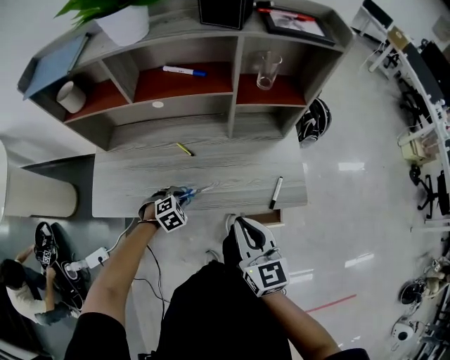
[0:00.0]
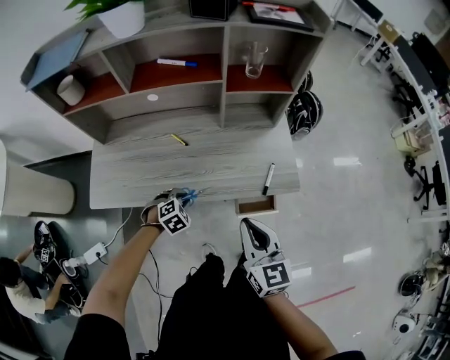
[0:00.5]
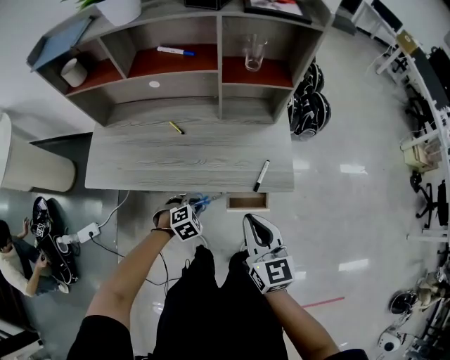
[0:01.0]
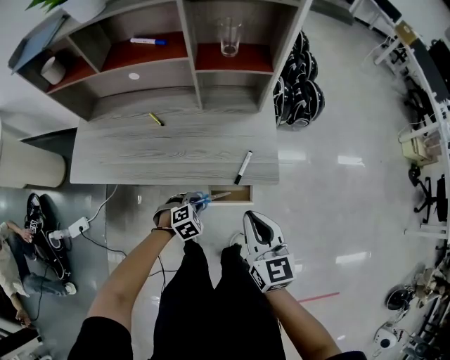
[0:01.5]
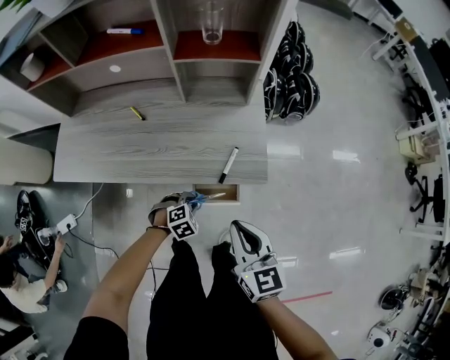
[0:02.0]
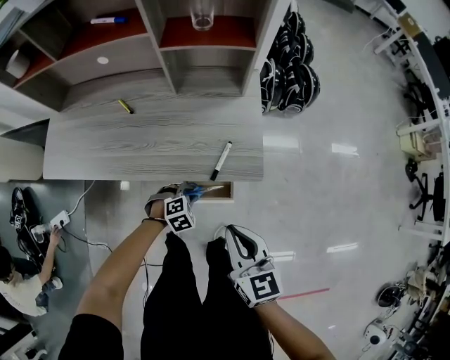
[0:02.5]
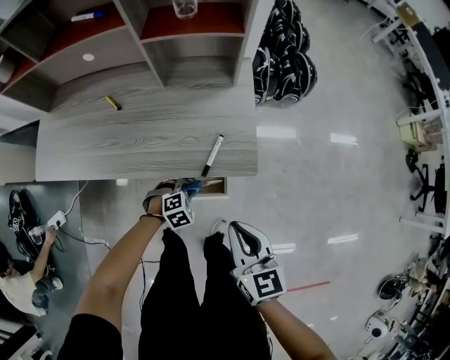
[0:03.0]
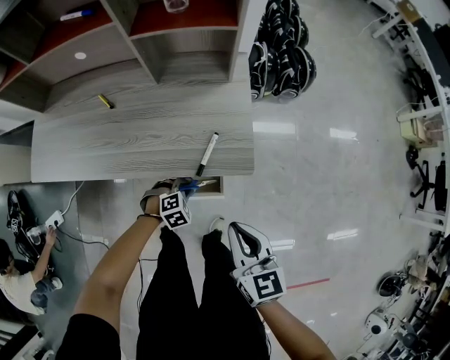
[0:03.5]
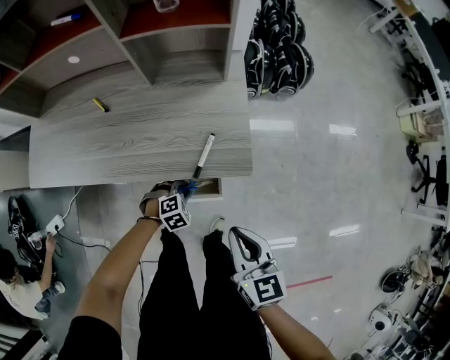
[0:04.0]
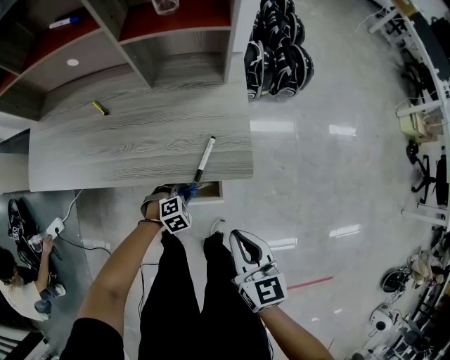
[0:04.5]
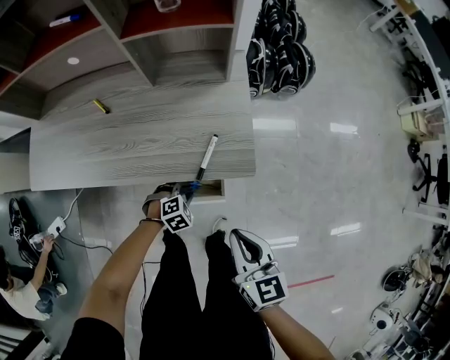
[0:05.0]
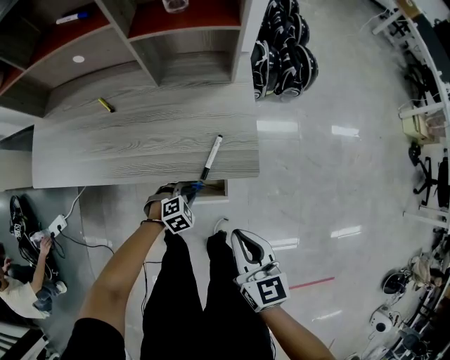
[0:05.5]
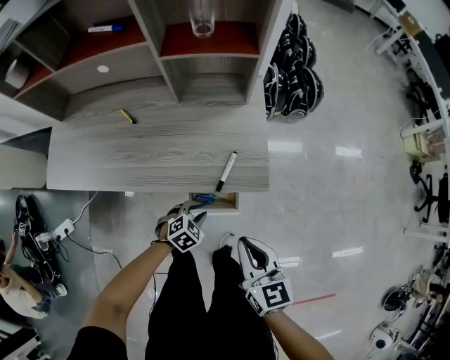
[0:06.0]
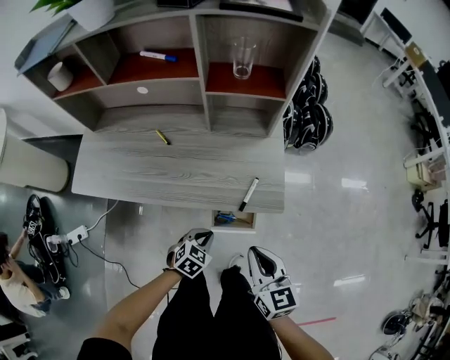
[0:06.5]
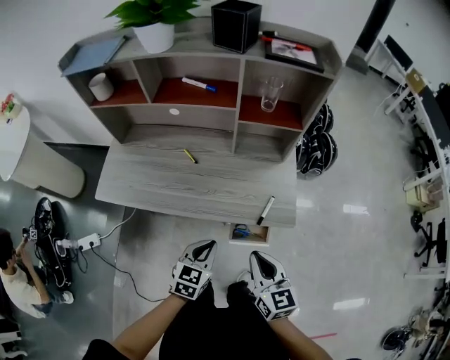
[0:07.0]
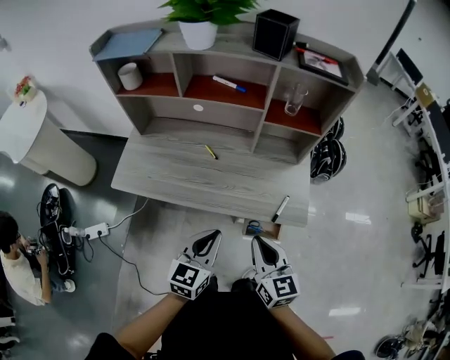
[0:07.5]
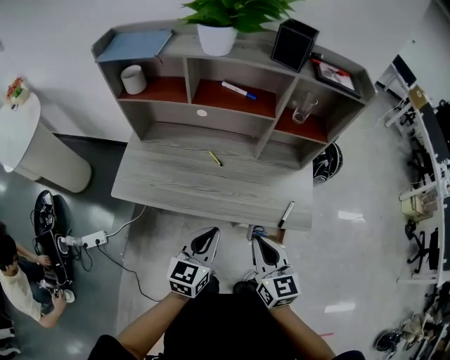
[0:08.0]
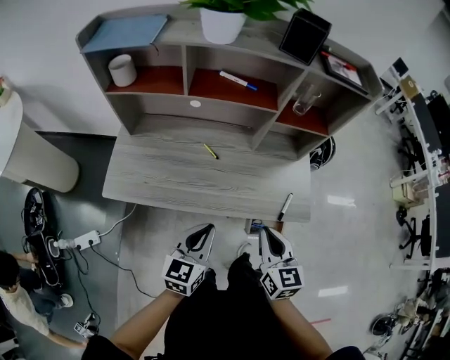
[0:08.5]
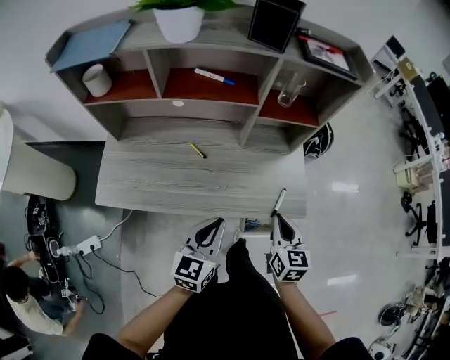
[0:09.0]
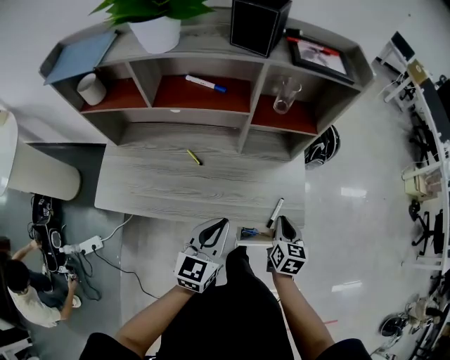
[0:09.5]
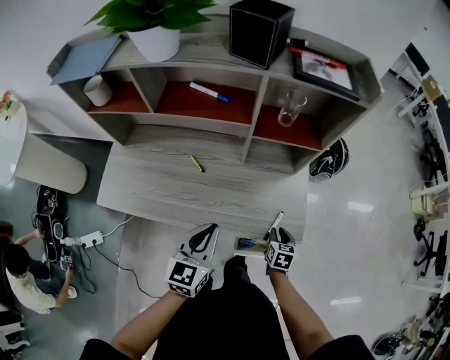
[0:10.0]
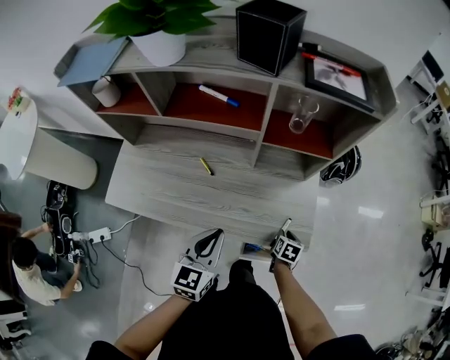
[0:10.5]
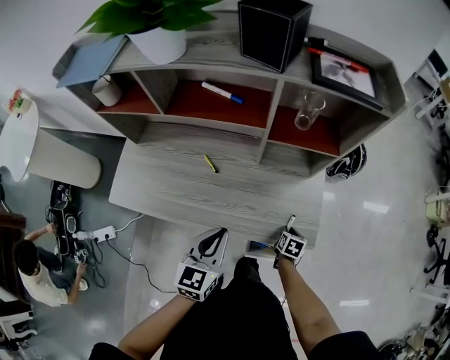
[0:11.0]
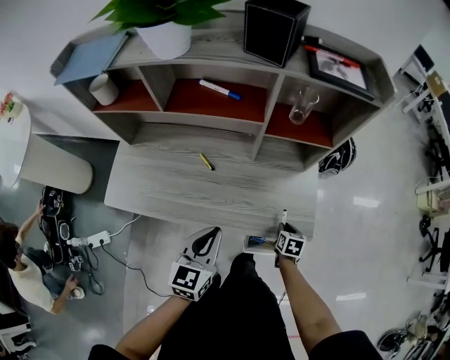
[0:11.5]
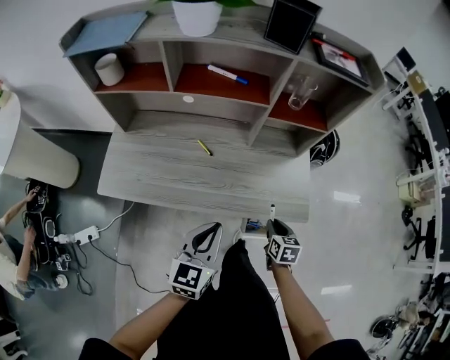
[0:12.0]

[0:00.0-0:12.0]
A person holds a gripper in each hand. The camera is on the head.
0:00.0 to 0:02.0: Both grippers travel together to the right, about 25 cm.
0:02.0 to 0:04.0: The right gripper shifts approximately 10 cm downward and to the right, while the left gripper shifts approximately 10 cm downward.
0:04.0 to 0:06.0: The left gripper moves upward, roughly 5 cm.
0:06.0 to 0:08.0: The right gripper heads to the left and upward, covering some 30 cm. The left gripper heads upward and to the left, covering roughly 40 cm, points its fingers about 50 degrees further upward, and closes up.
0:08.0 to 0:10.0: The right gripper goes roughly 35 cm downward, to the right and forward, and tips its fingers downward by roughly 30 degrees. Meanwhile the left gripper travels forward and to the right by some 15 cm.
0:10.0 to 0:12.0: The left gripper heads backward, covering some 10 cm, while the right gripper heads backward and to the left, covering roughly 10 cm.

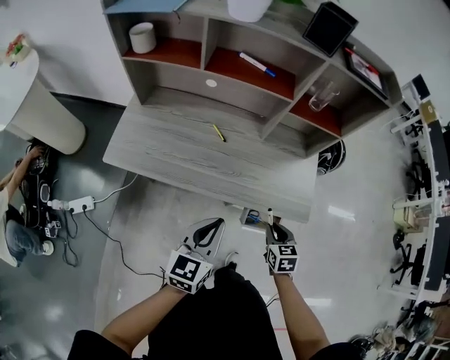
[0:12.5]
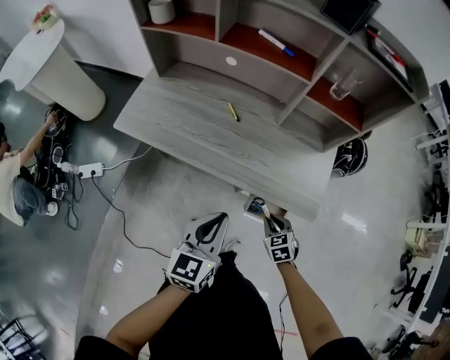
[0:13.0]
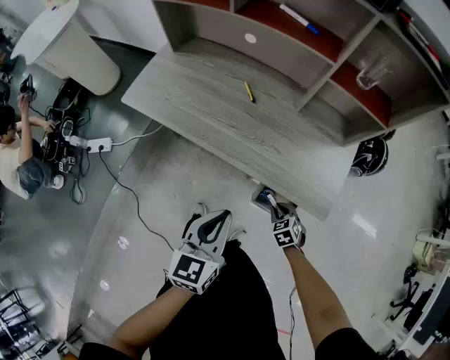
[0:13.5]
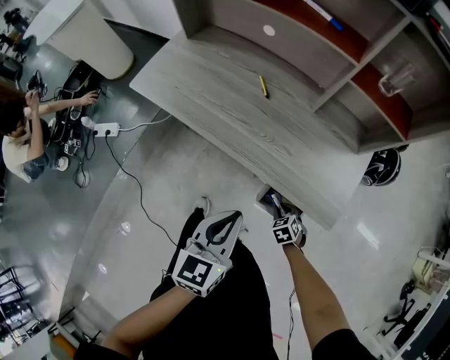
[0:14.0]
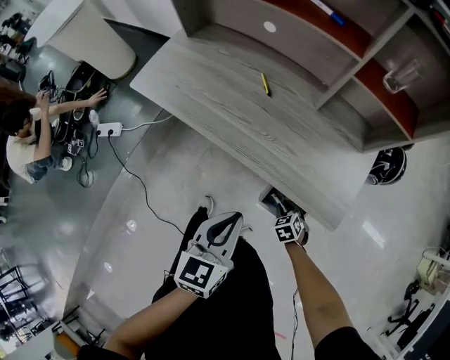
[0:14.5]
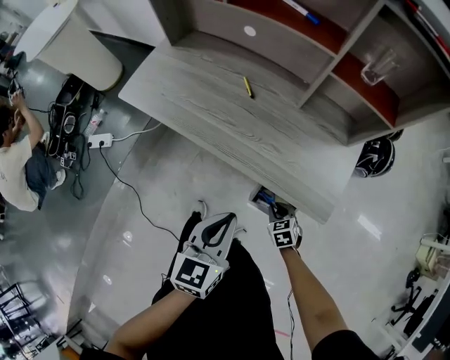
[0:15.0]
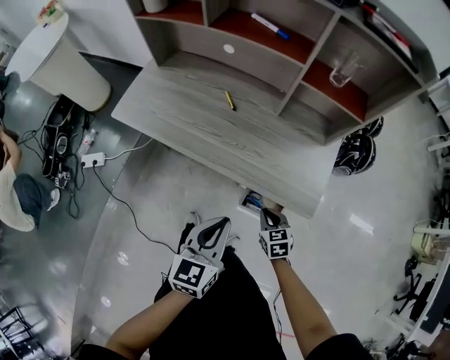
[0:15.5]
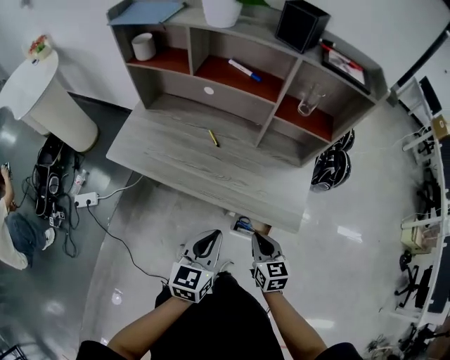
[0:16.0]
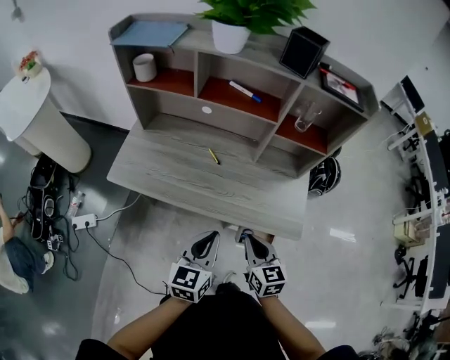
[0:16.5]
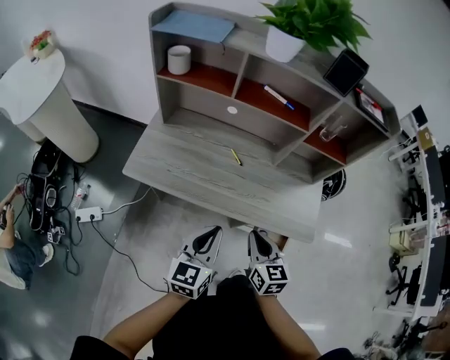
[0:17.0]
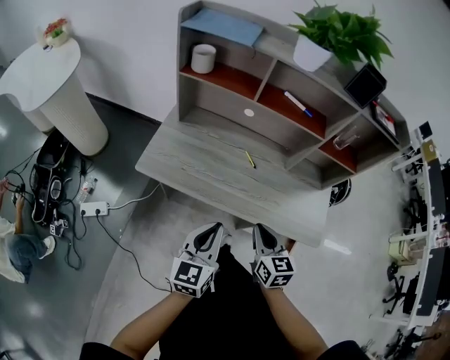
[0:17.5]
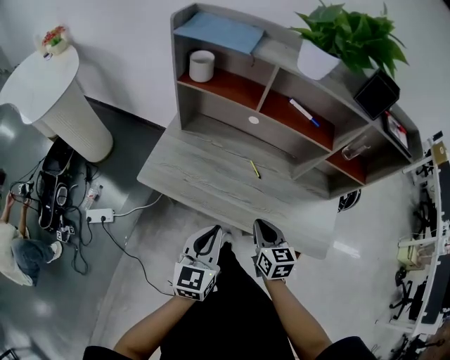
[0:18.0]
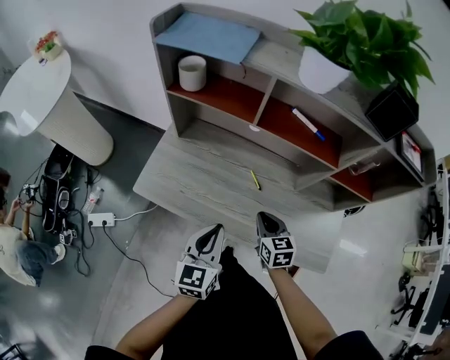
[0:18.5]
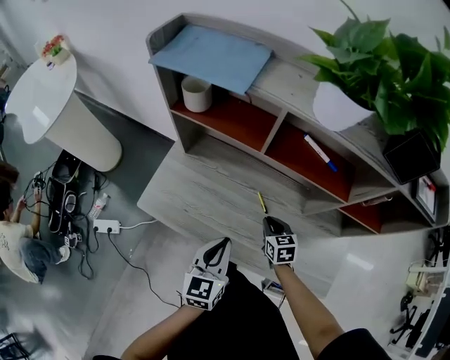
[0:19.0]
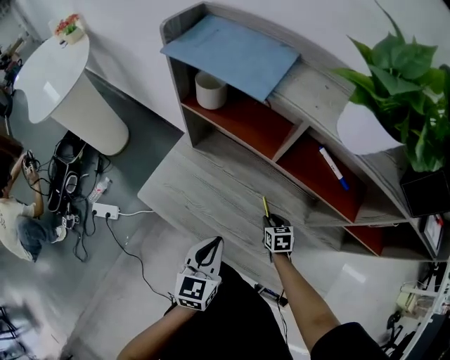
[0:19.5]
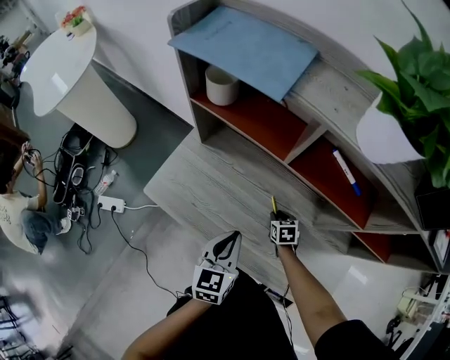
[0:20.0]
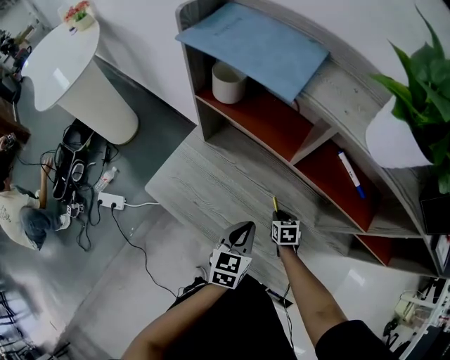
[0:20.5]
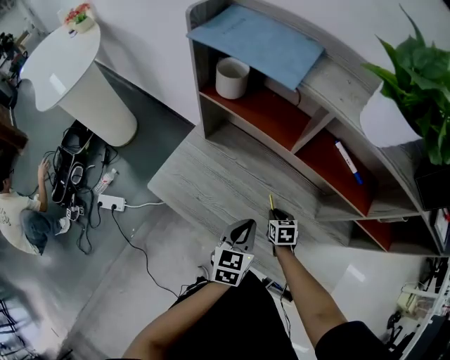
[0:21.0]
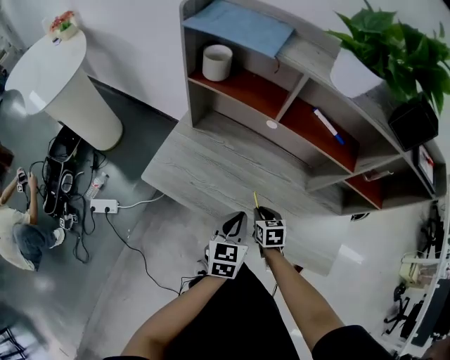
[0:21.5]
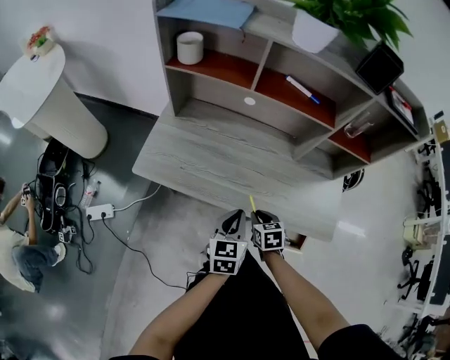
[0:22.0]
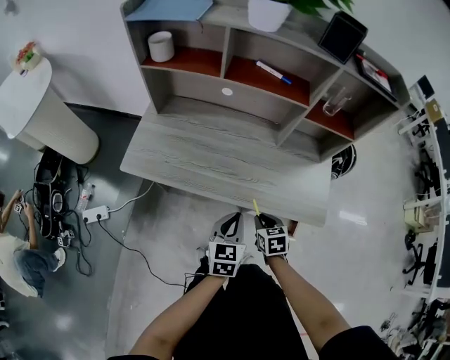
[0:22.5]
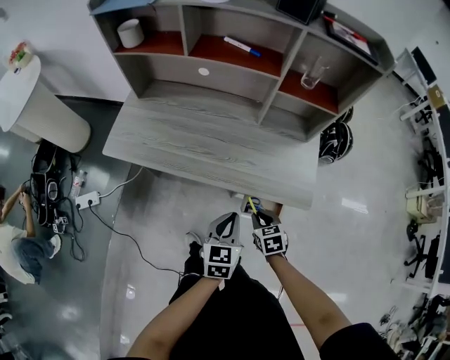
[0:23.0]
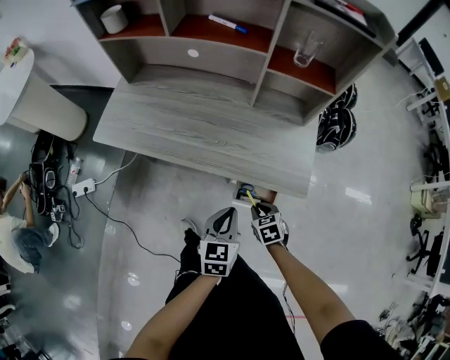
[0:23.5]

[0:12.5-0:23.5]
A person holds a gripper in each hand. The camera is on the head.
0:12.5 to 0:14.5: The right gripper moves downward, approximately 25 cm, and swivels about 40 degrees. The left gripper is displaced downward, to the right and backward by about 15 cm, and changes its angle by roughly 20 degrees.
0:14.5 to 0:16.0: The right gripper travels upward by some 30 cm, and tilts its fingers some 30 degrees upward. The left gripper heads upward, covering roughly 10 cm.
0:16.0 to 0:18.0: Both grippers move to the left and forward, about 25 cm.
0:18.0 to 0:20.0: The right gripper shifts about 35 cm forward and downward, and swivels some 30 degrees, while the left gripper is displaced forward by roughly 20 cm.
0:20.0 to 0:21.5: The right gripper travels backward, upward and to the left by approximately 15 cm; the left gripper travels backward by about 5 cm.
0:21.5 to 0:23.5: The two grippers go about 35 cm backward and to the right.

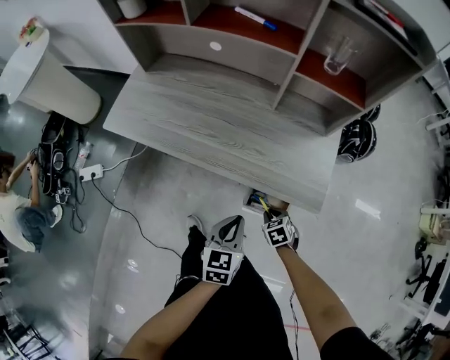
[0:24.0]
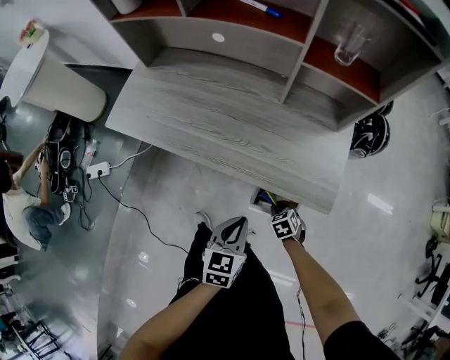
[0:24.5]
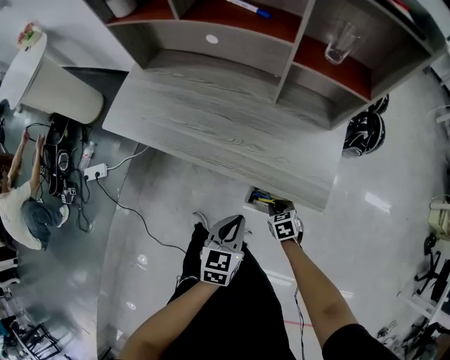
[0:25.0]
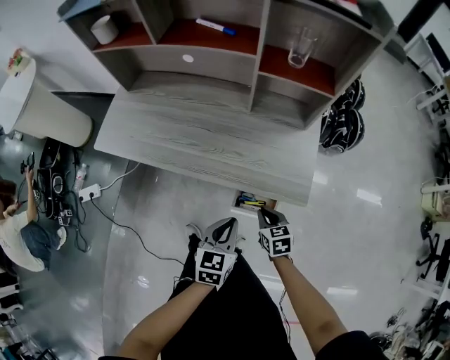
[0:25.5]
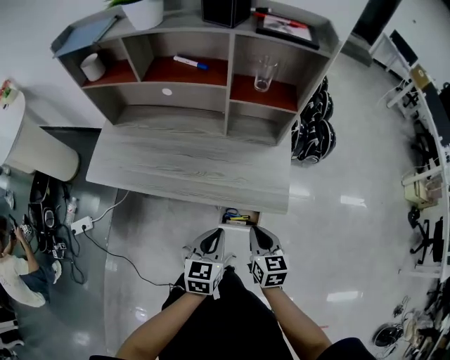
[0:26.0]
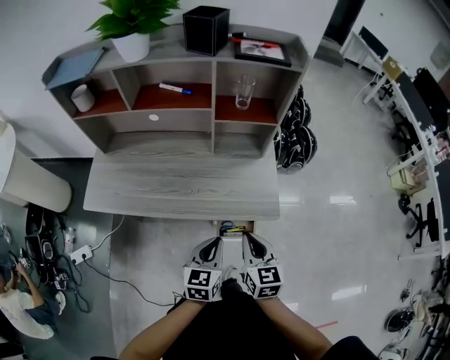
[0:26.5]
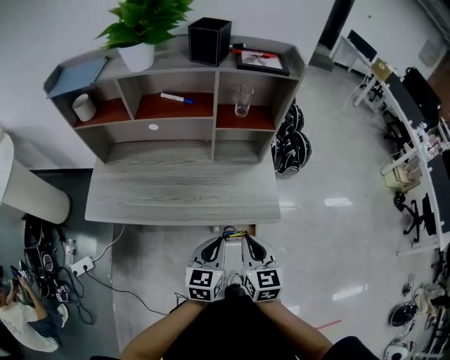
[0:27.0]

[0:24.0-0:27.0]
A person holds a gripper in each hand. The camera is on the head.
0:24.0 to 0:25.5: The right gripper travels upward by some 10 cm, and changes its angle by about 30 degrees.
0:25.5 to 0:27.0: The left gripper goes some 10 cm upward. The right gripper shifts roughly 25 cm upward, and changes its angle by roughly 40 degrees.
